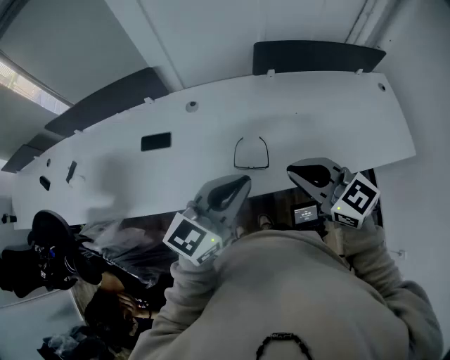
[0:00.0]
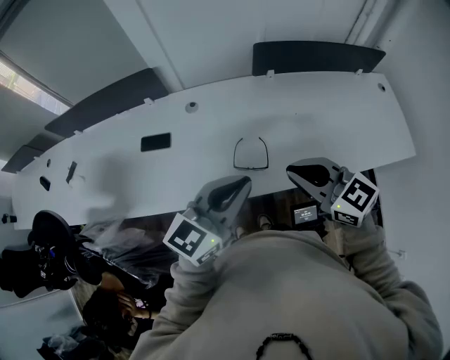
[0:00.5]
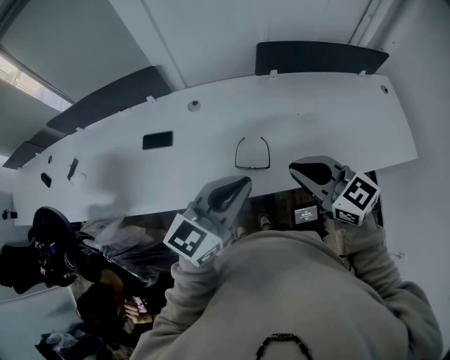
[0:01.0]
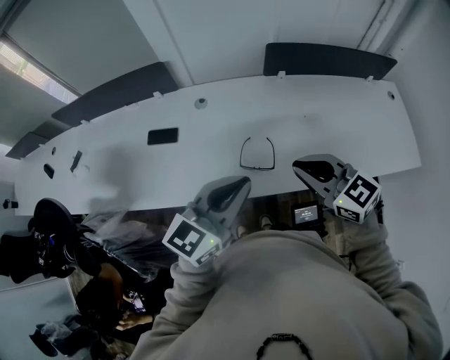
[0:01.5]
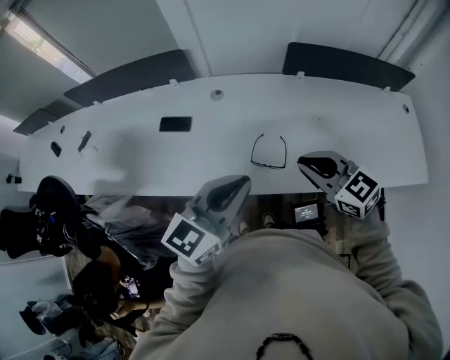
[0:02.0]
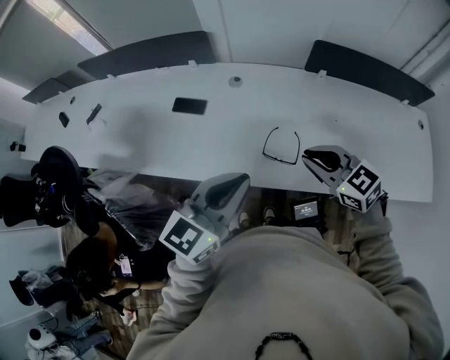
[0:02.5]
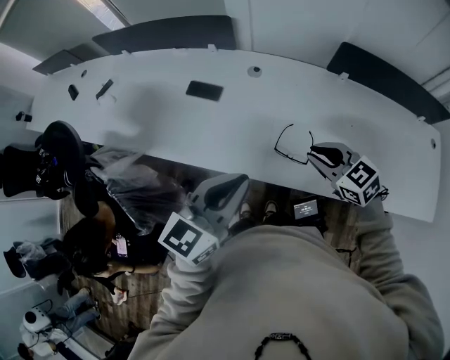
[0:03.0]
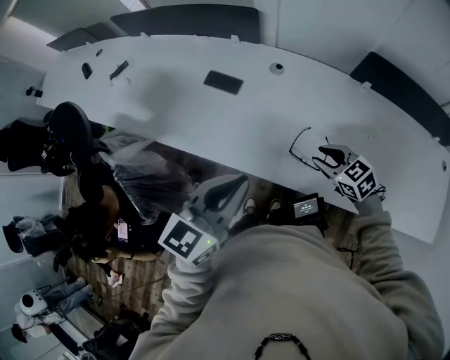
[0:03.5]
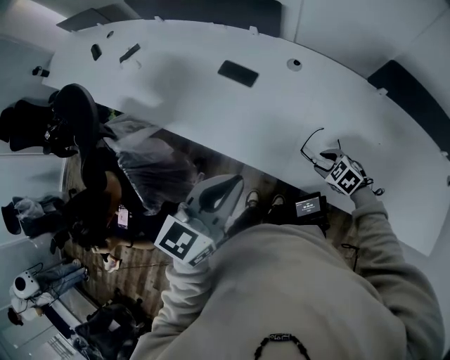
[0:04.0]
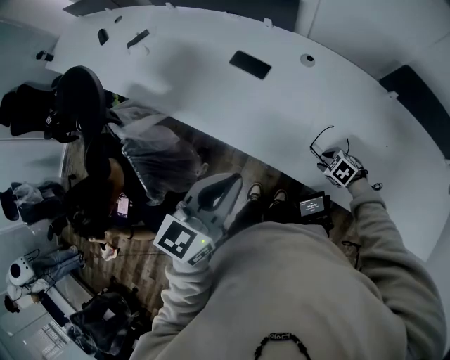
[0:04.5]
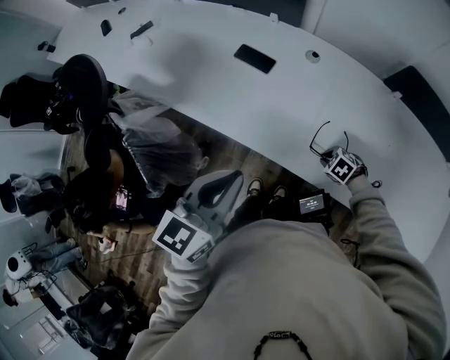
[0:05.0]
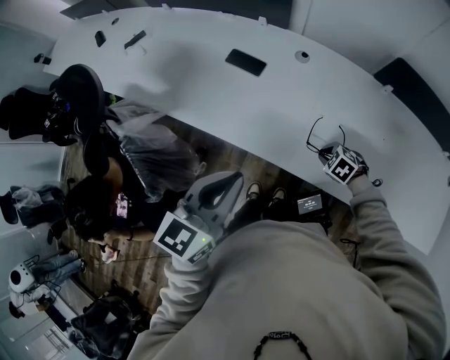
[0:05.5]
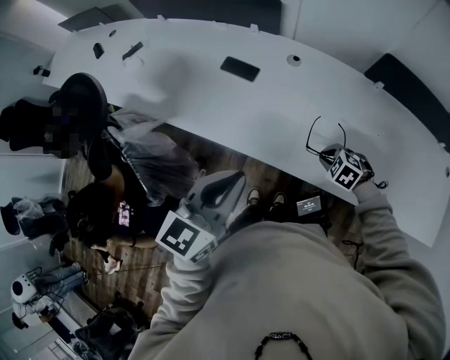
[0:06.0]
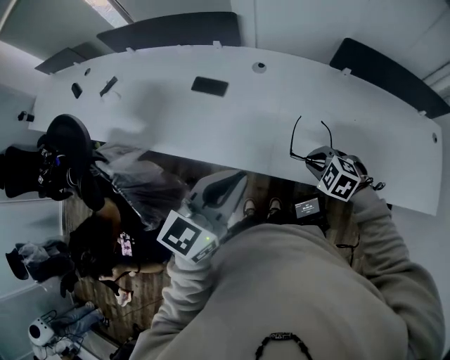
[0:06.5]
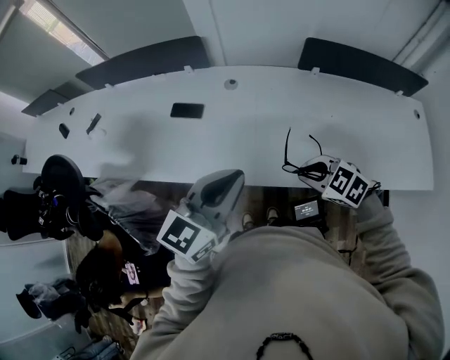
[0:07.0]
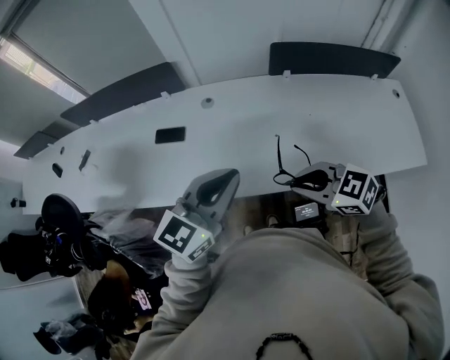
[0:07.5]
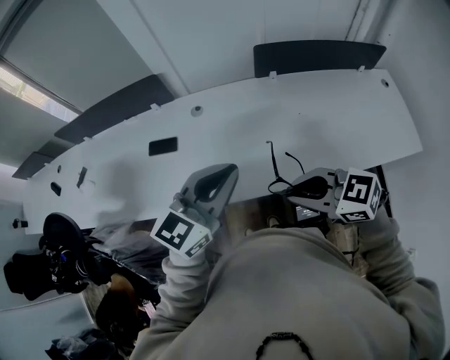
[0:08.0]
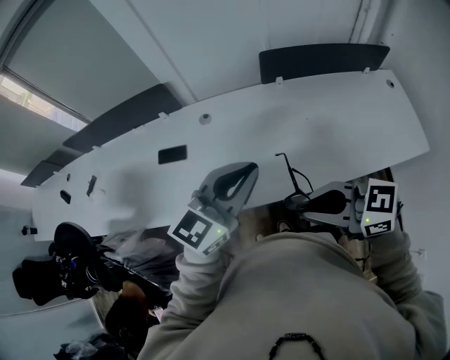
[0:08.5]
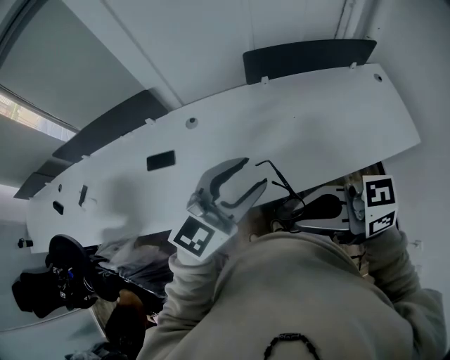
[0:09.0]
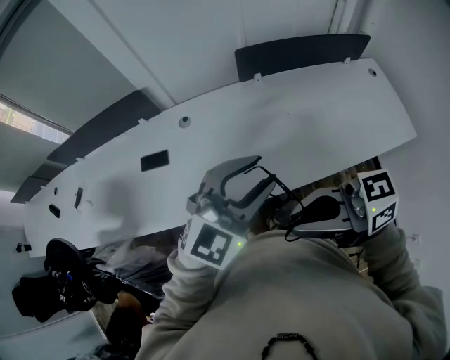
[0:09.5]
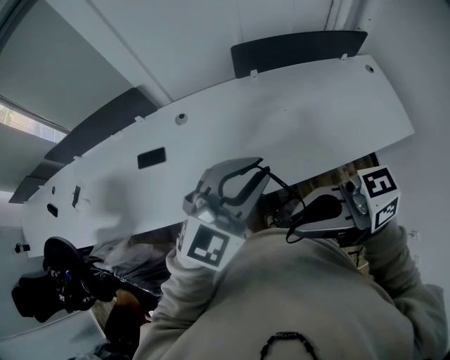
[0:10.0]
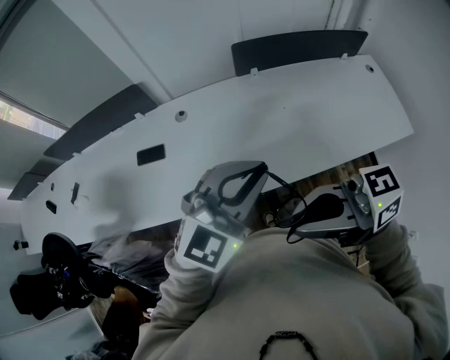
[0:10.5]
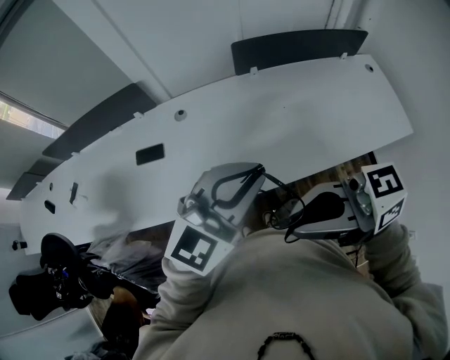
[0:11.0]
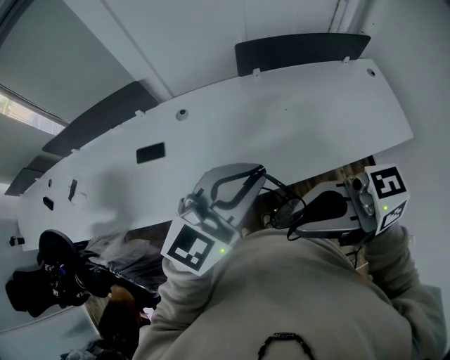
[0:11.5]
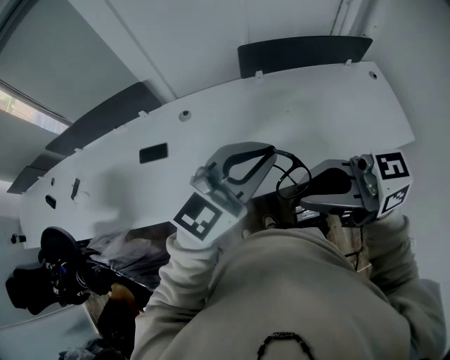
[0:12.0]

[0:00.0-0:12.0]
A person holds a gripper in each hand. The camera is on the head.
0:00.0 to 0:02.0: The right gripper ends up roughly 5 cm from where it was.
0:02.0 to 0:04.0: The left gripper moves roughly 15 cm, and turns by roughly 30 degrees, while the right gripper shifts roughly 30 cm downward, tips its fingers downward by about 40 degrees, and opens up.
0:04.0 to 0:06.0: The right gripper goes downward and returns, roughly 5 cm each way, and closes up.
0:06.0 to 0:08.0: The right gripper is displaced upward and backward by approximately 30 cm, and points its fingers some 40 degrees further upward; the left gripper shifts roughly 15 cm to the right, and changes its angle by some 40 degrees.
0:08.0 to 0:10.0: The left gripper ends up approximately 10 cm from where it was, turns by approximately 30 degrees, and opens, then closes once more; the right gripper travels upward by roughly 10 cm, and points its fingers approximately 30 degrees further upward.
0:10.0 to 0:12.0: The right gripper ends up roughly 5 cm from where it was.

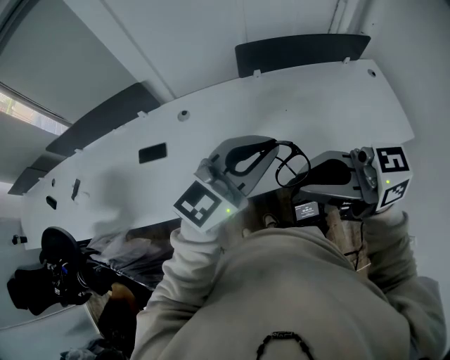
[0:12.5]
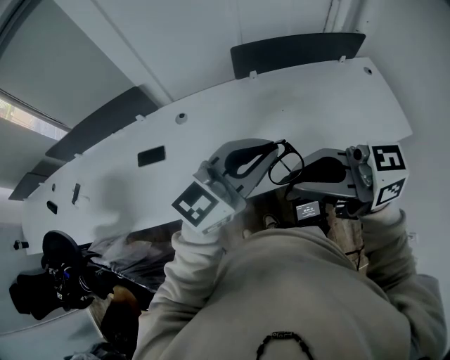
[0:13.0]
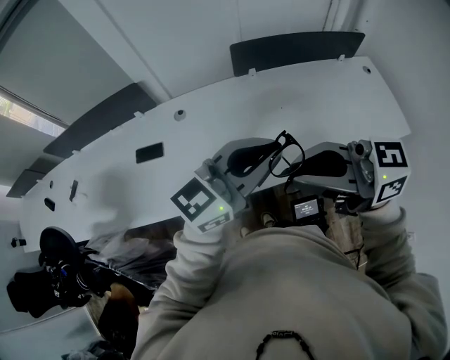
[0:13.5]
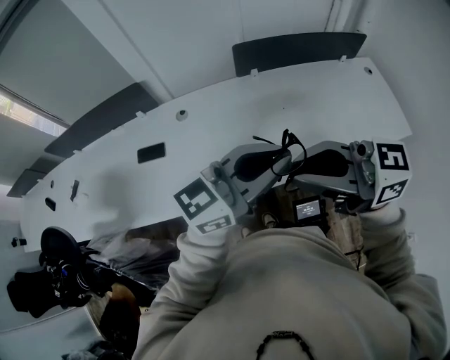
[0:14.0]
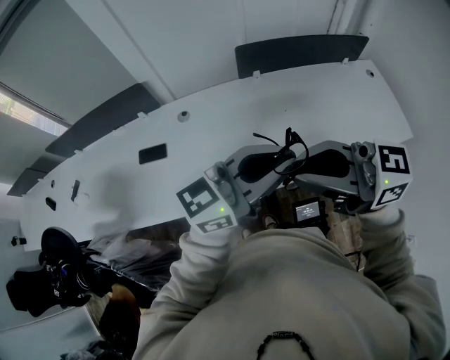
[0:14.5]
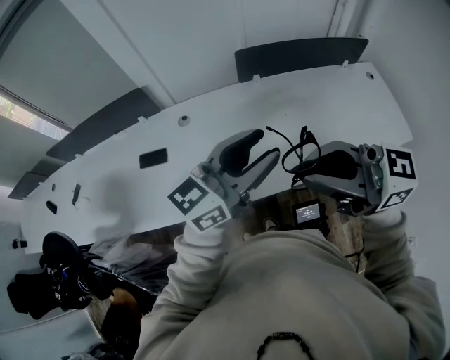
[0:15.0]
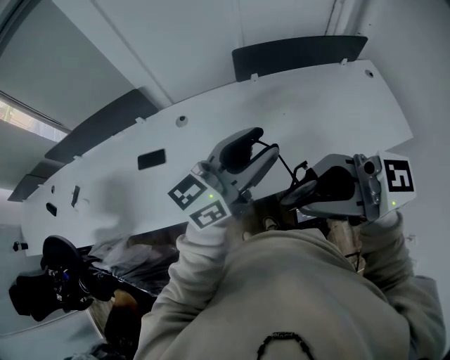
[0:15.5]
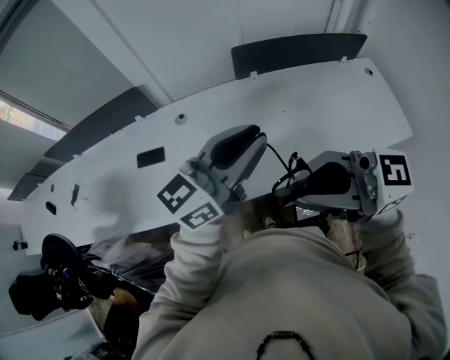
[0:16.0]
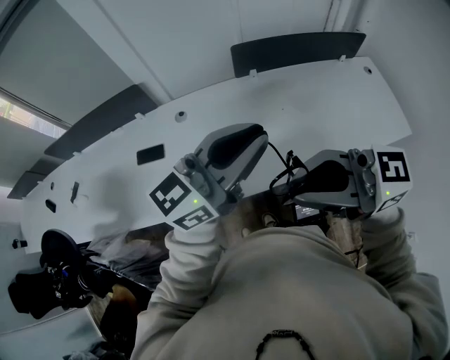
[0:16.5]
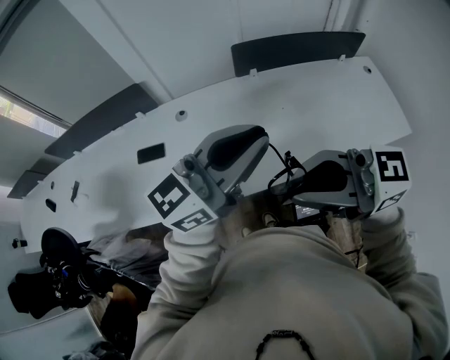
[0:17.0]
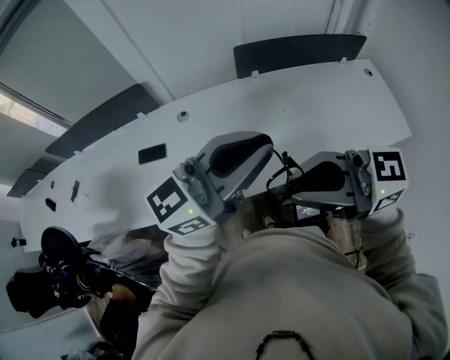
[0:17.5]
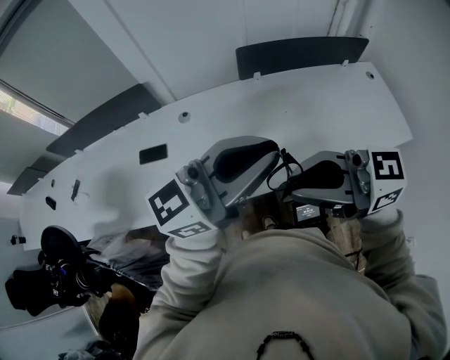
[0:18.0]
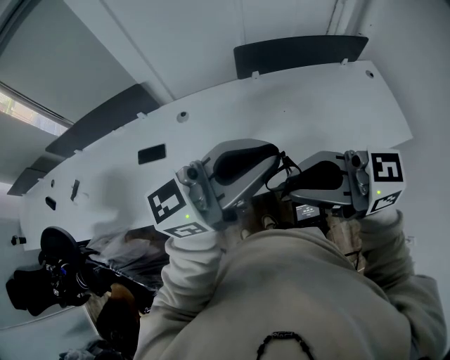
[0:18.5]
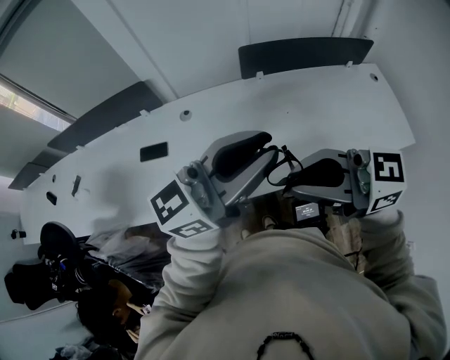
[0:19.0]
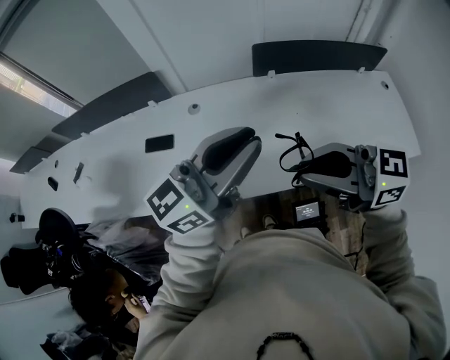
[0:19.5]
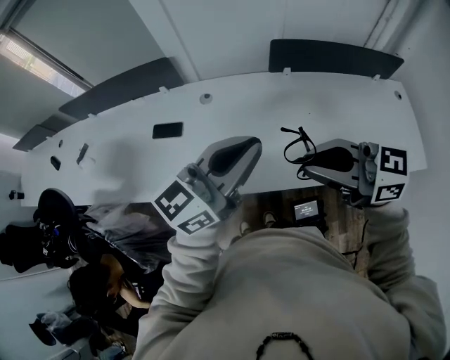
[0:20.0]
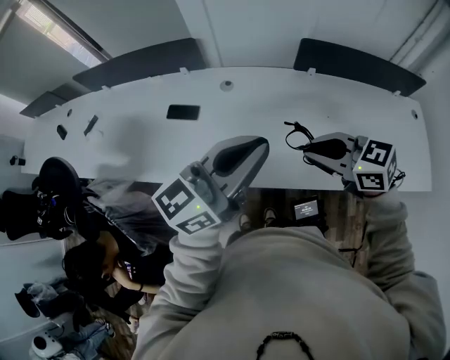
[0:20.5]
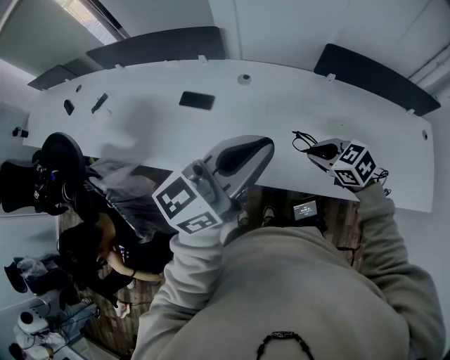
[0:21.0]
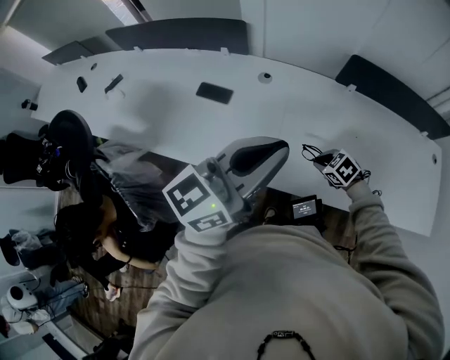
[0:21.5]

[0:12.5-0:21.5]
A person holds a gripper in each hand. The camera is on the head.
0:12.5 to 0:14.5: The left gripper rotates about 20 degrees.
0:14.5 to 0:17.0: The left gripper shifts by roughly 5 cm, and opens, then closes once more.
0:17.0 to 0:19.5: The right gripper shifts by approximately 5 cm.
0:19.5 to 0:21.5: The left gripper changes place by roughly 10 cm, and rotates some 20 degrees. The right gripper travels downward by some 40 cm, and tilts its fingers approximately 60 degrees downward.

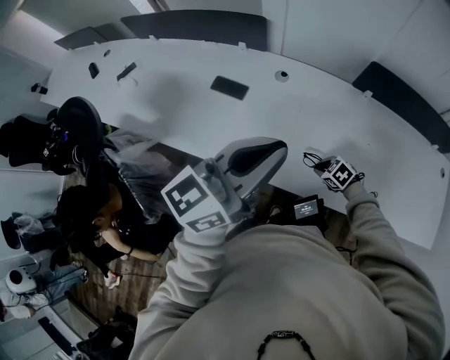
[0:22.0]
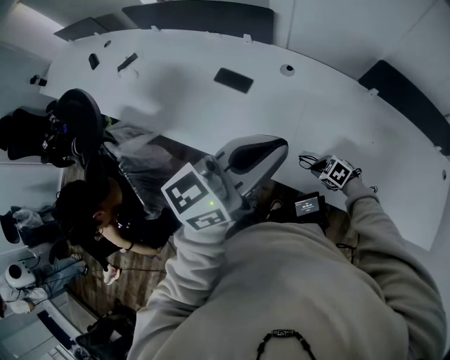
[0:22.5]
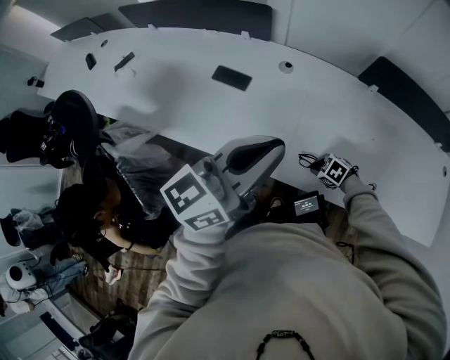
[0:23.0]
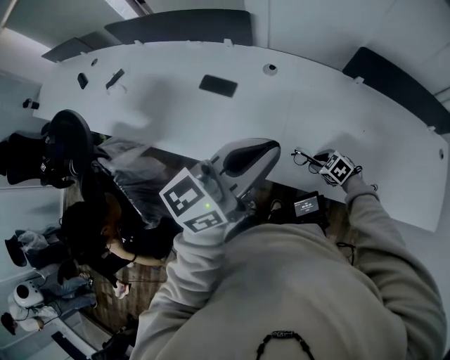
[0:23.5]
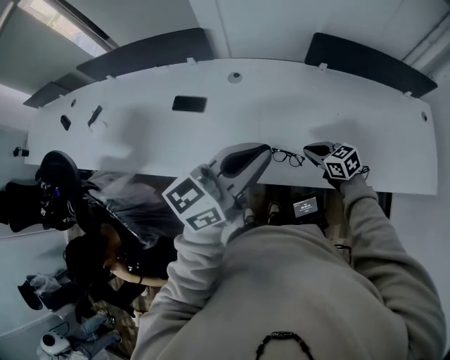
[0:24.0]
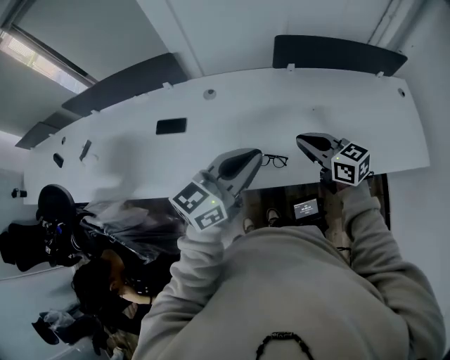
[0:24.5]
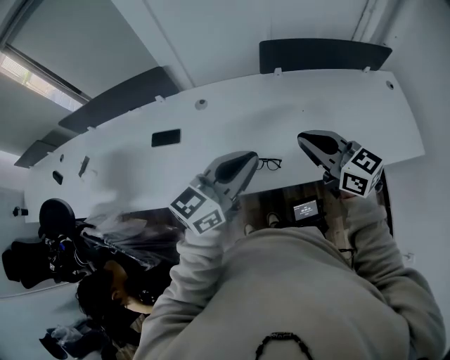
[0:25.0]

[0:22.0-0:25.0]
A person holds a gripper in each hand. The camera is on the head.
0:22.0 to 0:23.5: There are only small adjustments of the grippers.
0:23.5 to 0:25.0: The left gripper ends up roughly 10 cm from where it was; the right gripper is displaced upward by some 35 cm, and angles its fingers upward, by approximately 60 degrees.

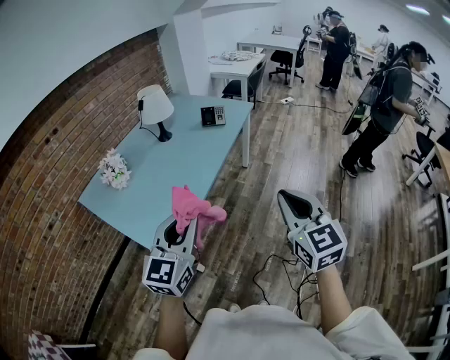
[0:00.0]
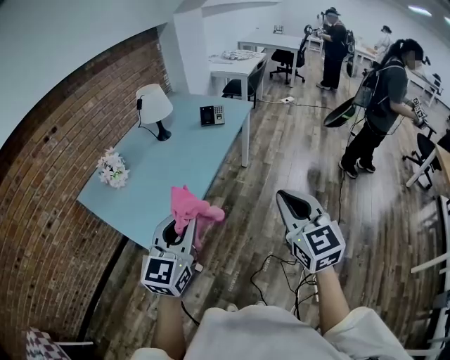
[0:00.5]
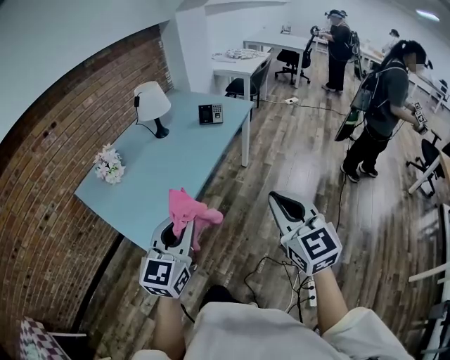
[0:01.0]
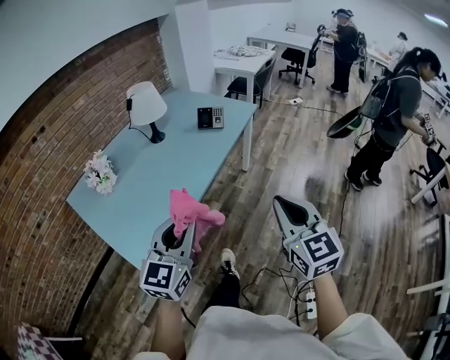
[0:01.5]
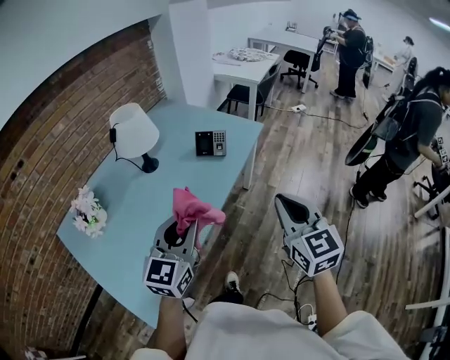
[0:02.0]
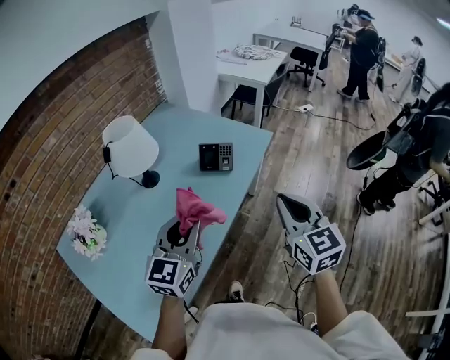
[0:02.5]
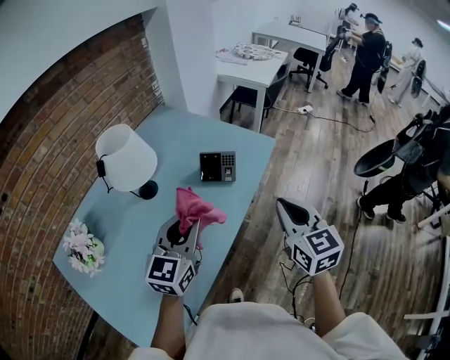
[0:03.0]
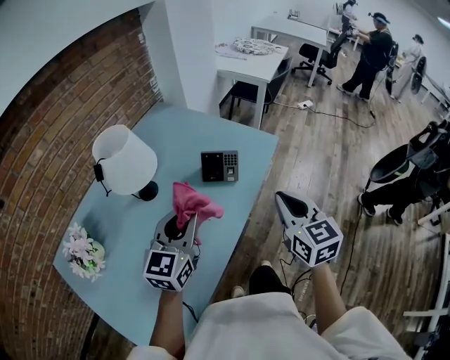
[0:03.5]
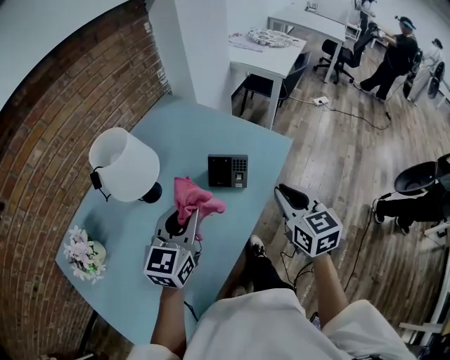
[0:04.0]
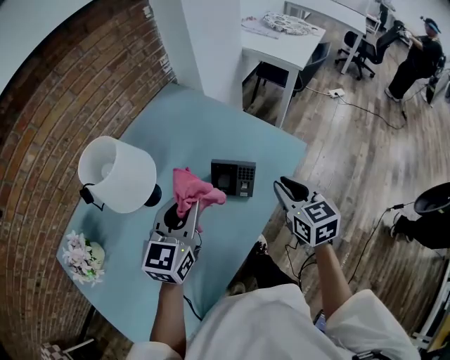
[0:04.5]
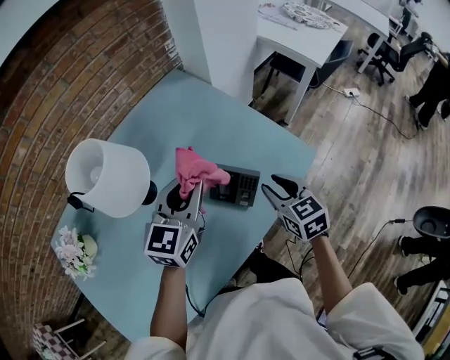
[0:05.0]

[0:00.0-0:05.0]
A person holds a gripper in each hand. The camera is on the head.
0:00.0 to 0:02.5: The two grippers travel together, forward, about 50 cm.
0:02.5 to 0:05.0: The right gripper travels forward and downward by about 40 cm, rotates about 30 degrees, and opens; the left gripper moves forward, roughly 35 cm.
